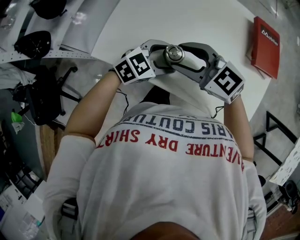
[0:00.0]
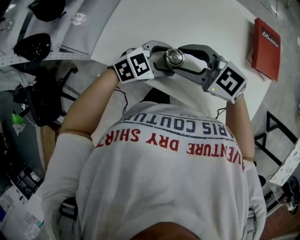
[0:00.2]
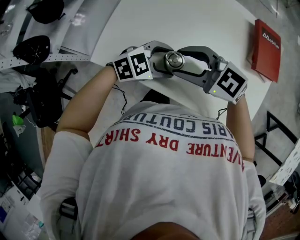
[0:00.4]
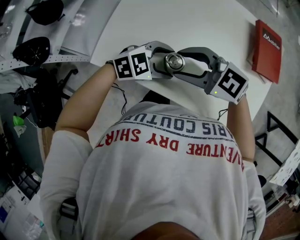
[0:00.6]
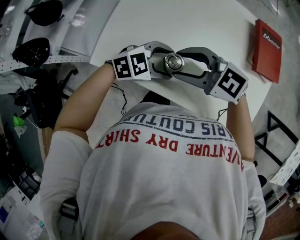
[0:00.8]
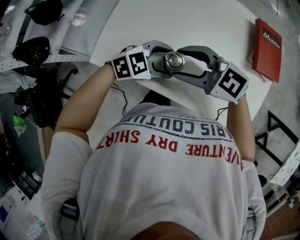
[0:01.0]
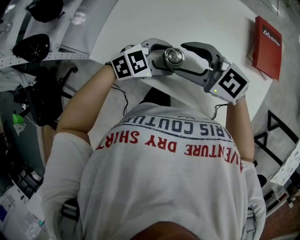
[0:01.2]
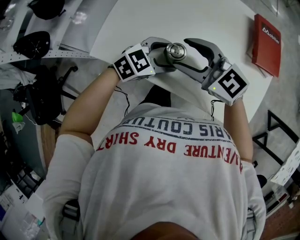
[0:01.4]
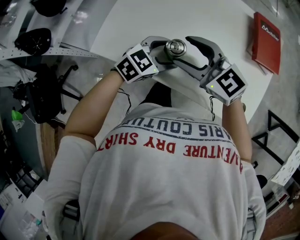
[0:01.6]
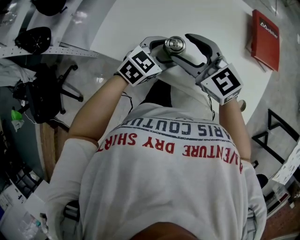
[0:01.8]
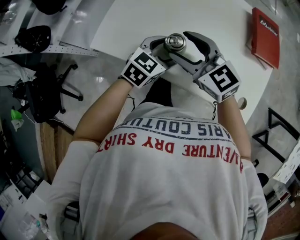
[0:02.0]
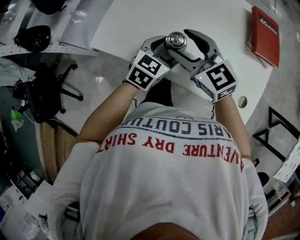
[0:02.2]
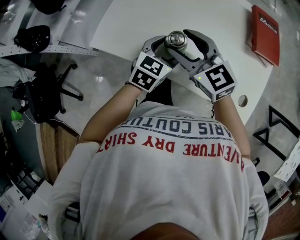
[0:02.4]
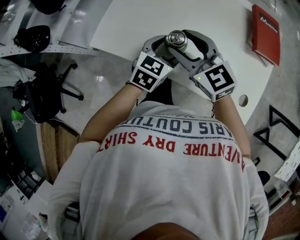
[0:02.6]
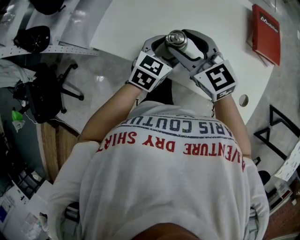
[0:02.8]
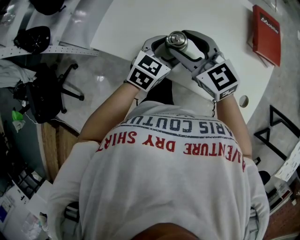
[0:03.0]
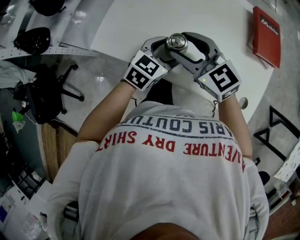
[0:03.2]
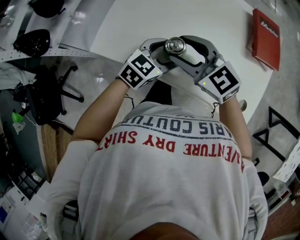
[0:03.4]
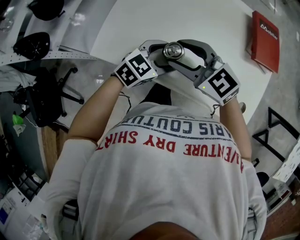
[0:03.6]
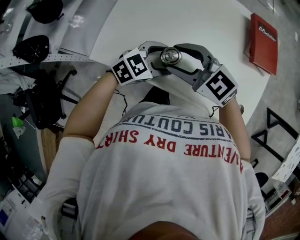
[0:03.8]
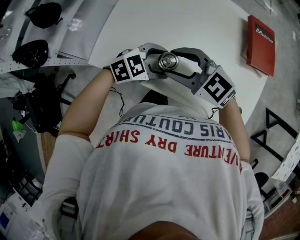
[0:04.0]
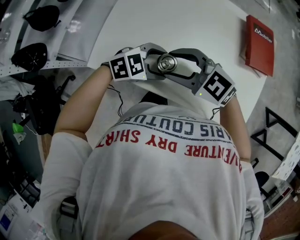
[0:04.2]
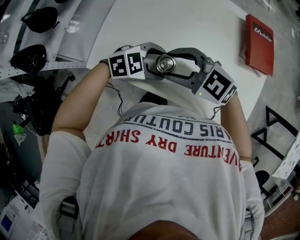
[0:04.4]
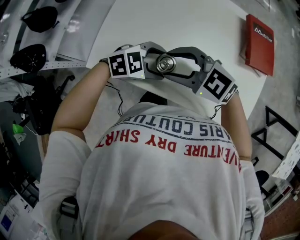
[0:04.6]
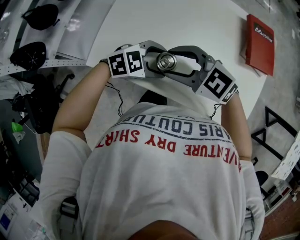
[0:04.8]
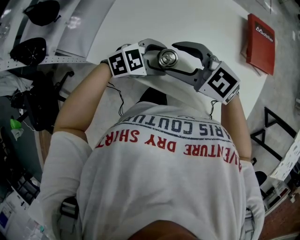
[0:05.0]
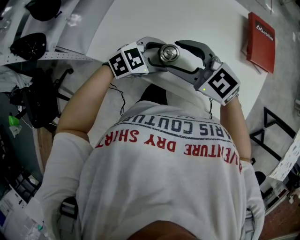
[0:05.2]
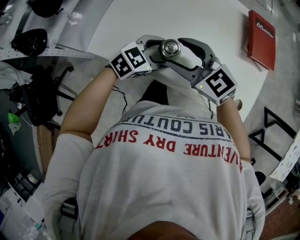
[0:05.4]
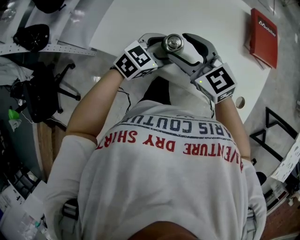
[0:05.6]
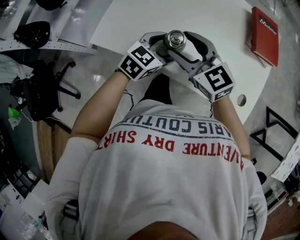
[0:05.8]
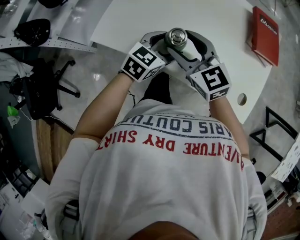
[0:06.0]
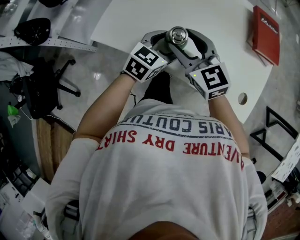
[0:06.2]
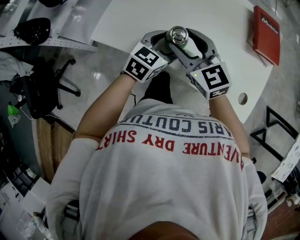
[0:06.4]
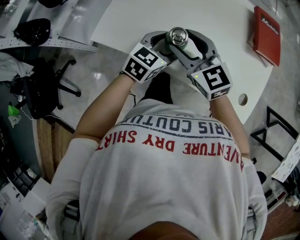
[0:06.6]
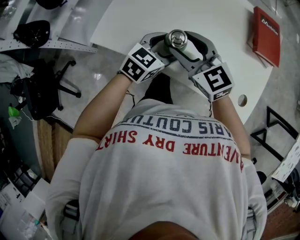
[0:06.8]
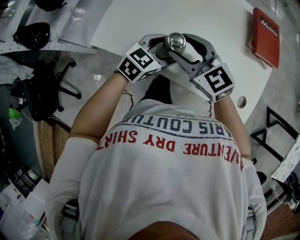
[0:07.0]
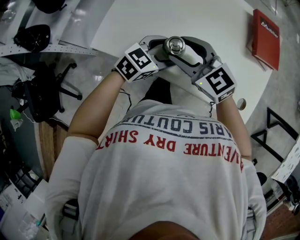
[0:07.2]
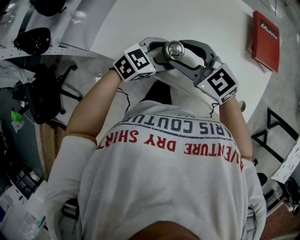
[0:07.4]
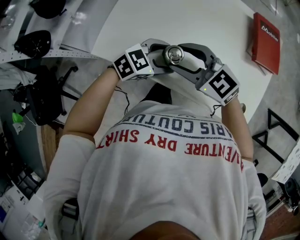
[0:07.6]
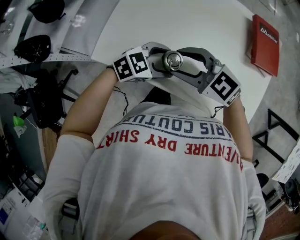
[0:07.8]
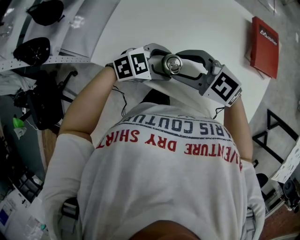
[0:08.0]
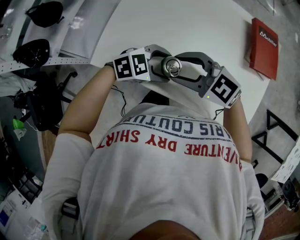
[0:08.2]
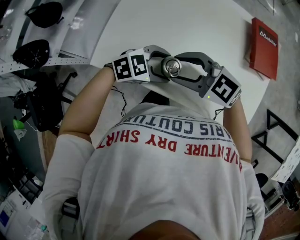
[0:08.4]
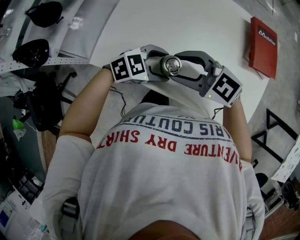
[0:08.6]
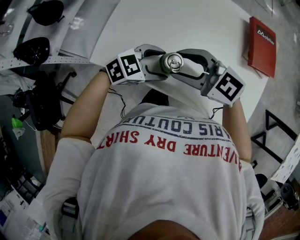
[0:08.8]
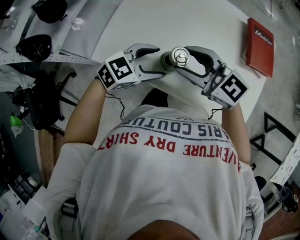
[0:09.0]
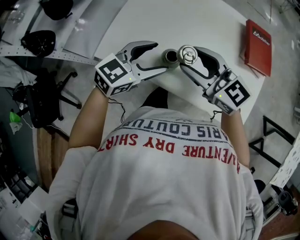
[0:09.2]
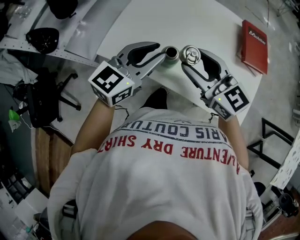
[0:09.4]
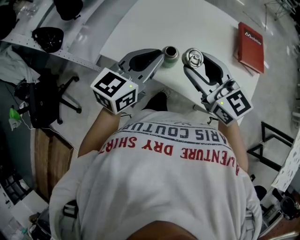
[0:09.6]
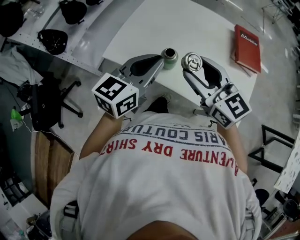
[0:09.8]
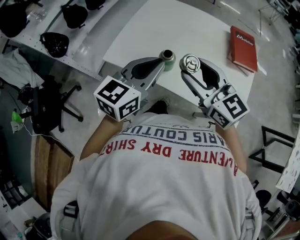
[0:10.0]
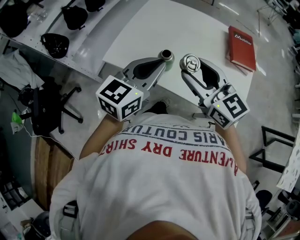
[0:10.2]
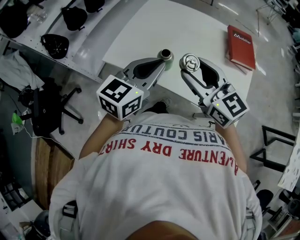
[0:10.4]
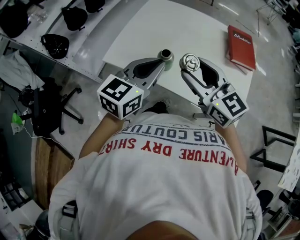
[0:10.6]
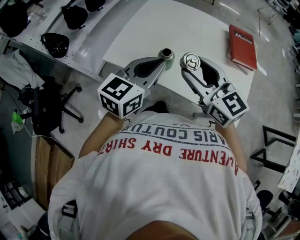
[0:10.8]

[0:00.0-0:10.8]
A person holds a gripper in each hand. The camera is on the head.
0.0 to 1.6 s: The grippers stay close to where they were, moving slightly.
1.6 to 3.0 s: The left gripper rotates some 20 degrees.
3.0 to 4.6 s: The right gripper changes its angle by approximately 30 degrees, while the left gripper swivels some 50 degrees.
4.6 to 6.2 s: The right gripper changes its angle by about 40 degrees. Meanwhile the left gripper rotates roughly 50 degrees.
6.2 to 7.8 s: The right gripper rotates approximately 30 degrees. The left gripper swivels roughly 40 degrees.
7.8 to 9.2 s: The left gripper goes about 10 cm upward, and changes its angle by some 30 degrees; the right gripper goes approximately 5 cm upward, and swivels about 20 degrees.
9.2 to 10.8 s: The right gripper moves backward and upward, some 10 cm. The left gripper travels upward and backward by roughly 15 cm, turns by roughly 20 degrees, and closes up.

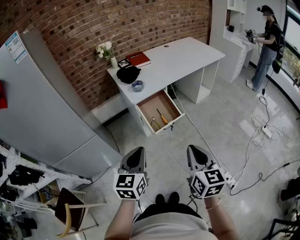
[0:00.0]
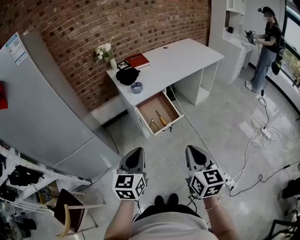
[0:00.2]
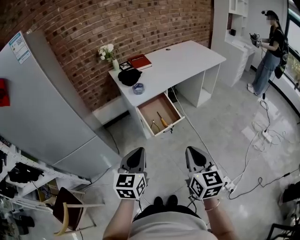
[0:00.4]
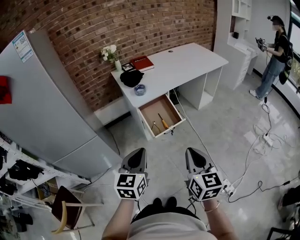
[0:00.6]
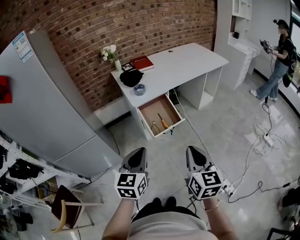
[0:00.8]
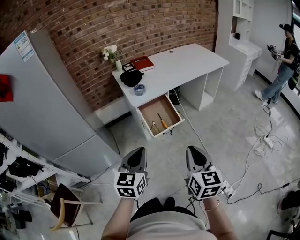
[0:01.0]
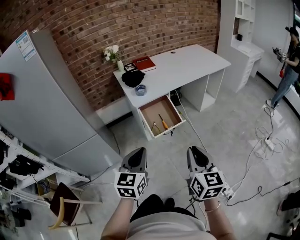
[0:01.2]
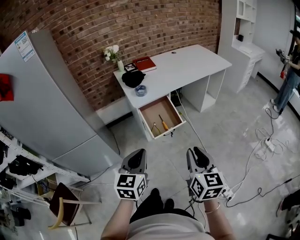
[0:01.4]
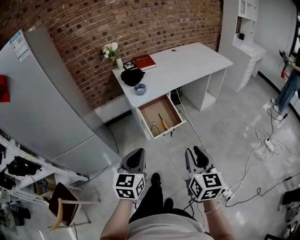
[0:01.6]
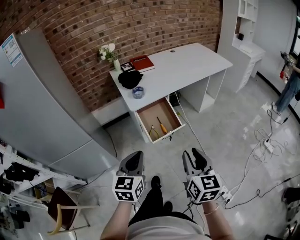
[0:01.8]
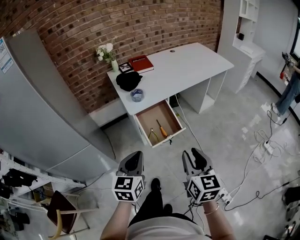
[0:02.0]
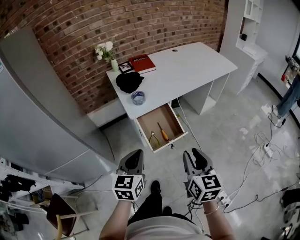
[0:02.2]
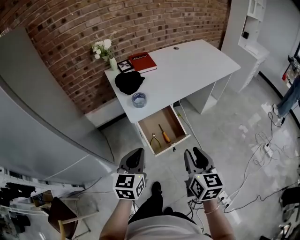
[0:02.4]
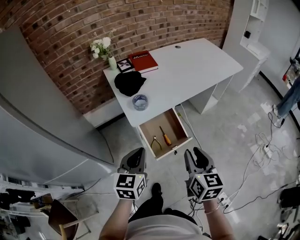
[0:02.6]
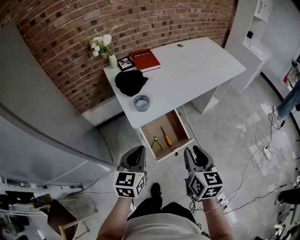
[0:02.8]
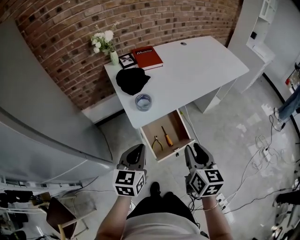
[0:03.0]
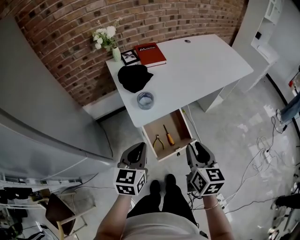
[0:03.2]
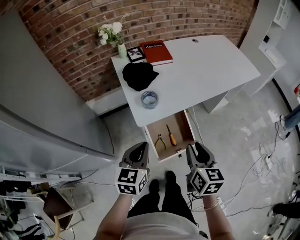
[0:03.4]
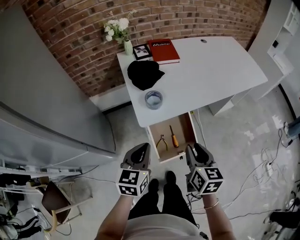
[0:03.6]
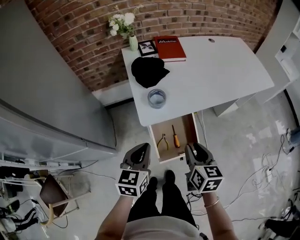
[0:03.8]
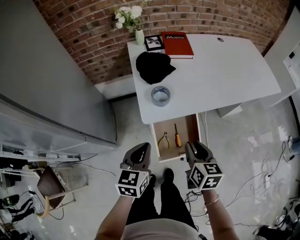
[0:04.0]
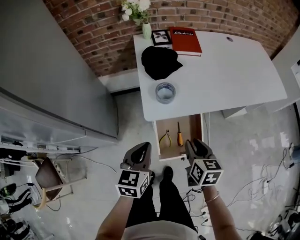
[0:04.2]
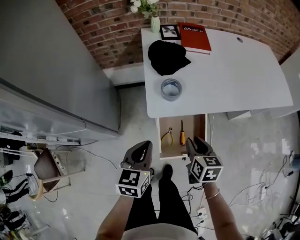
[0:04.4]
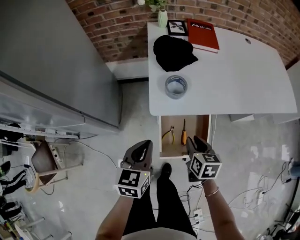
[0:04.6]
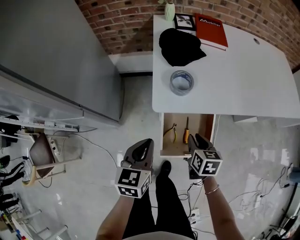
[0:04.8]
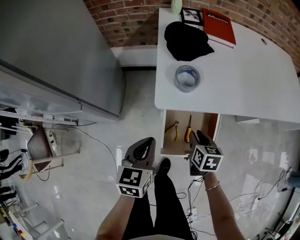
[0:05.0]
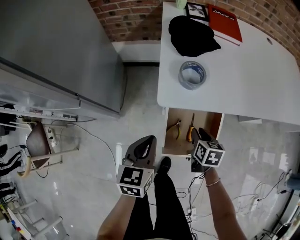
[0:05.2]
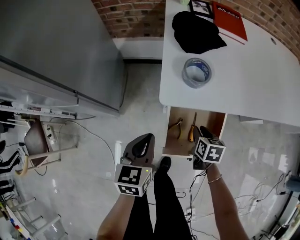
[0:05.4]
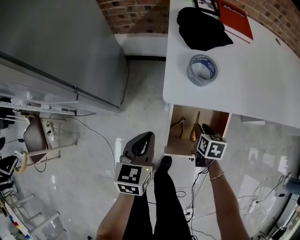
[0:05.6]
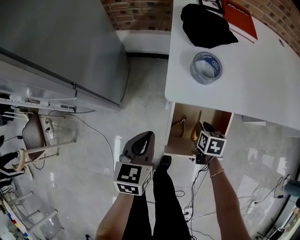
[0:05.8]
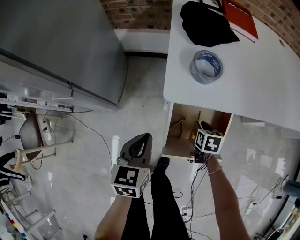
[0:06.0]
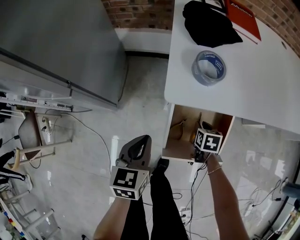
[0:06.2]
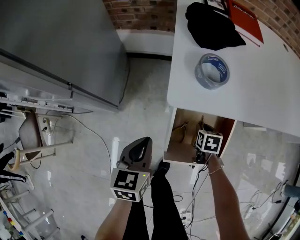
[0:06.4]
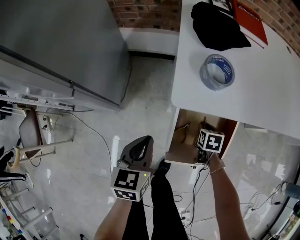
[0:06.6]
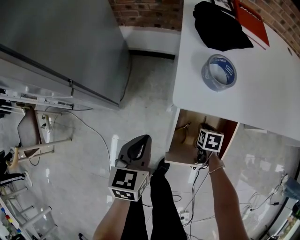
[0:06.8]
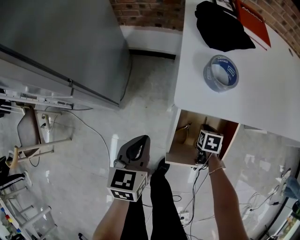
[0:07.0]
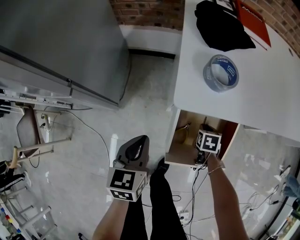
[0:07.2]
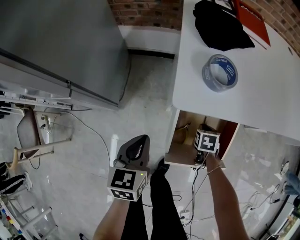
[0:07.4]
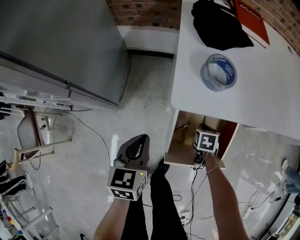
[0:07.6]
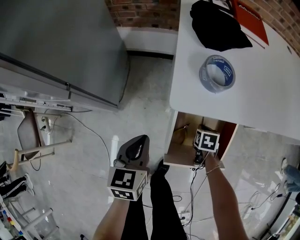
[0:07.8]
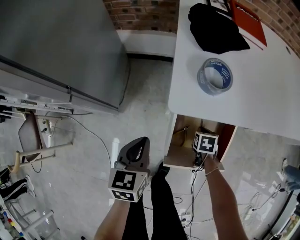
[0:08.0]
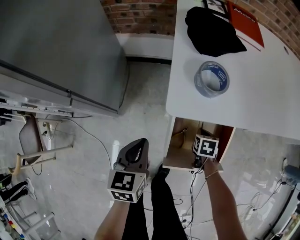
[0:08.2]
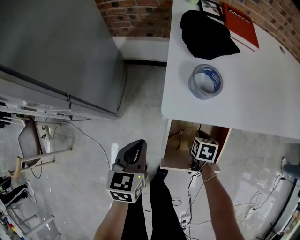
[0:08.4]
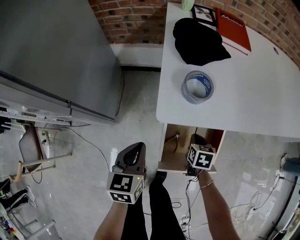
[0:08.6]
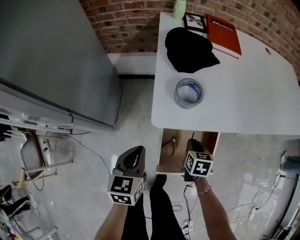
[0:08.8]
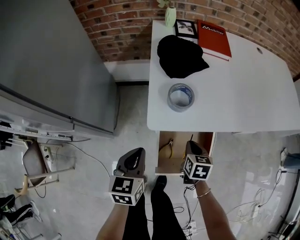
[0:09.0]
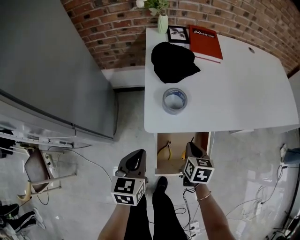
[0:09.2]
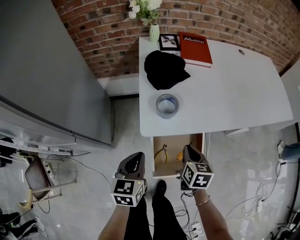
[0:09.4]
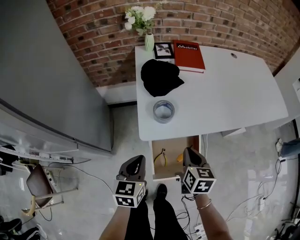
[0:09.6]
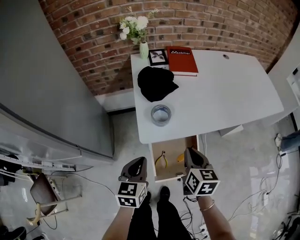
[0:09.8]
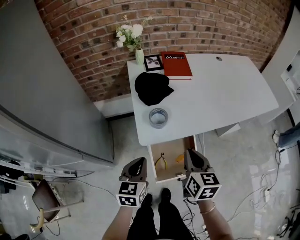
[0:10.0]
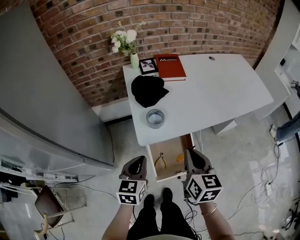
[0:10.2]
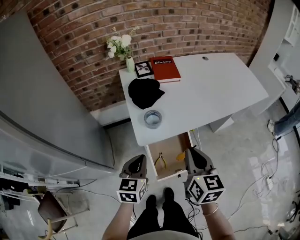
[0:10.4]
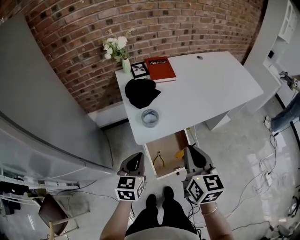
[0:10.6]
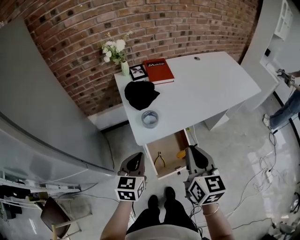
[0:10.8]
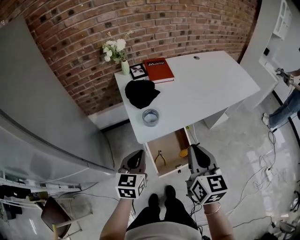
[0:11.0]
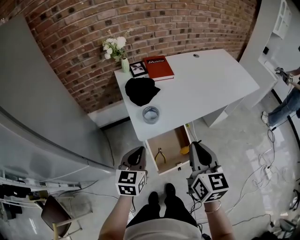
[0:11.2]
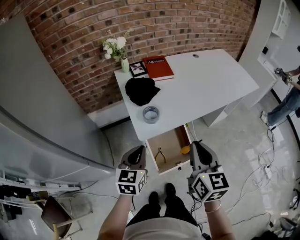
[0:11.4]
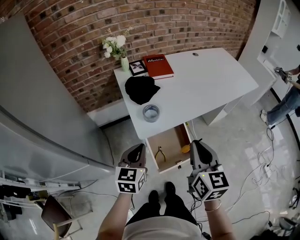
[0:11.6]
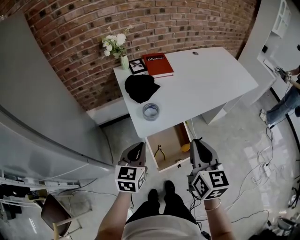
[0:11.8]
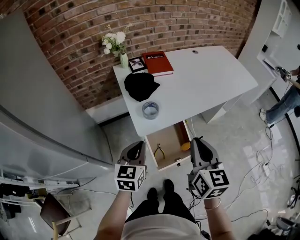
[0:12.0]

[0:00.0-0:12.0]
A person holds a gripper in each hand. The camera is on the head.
0.0 to 1.6 s: The right gripper opens.
1.6 to 3.0 s: The two grippers go approximately 25 cm forward.
3.0 to 4.4 s: The right gripper is displaced downward and forward by roughly 20 cm, and swivels roughly 30 degrees, while the left gripper heads downward, covering some 10 cm, and changes its angle by roughly 20 degrees.
4.4 to 6.0 s: The right gripper heads downward, covering some 25 cm, and turns by approximately 20 degrees. The left gripper travels downward by roughly 15 cm.
6.0 to 7.6 s: The right gripper travels downward by roughly 5 cm.
7.6 to 9.0 s: The left gripper goes roughly 5 cm upward, while the right gripper goes some 15 cm upward, and turns by approximately 20 degrees.
9.0 to 10.4 s: The right gripper is displaced upward by approximately 30 cm, and swivels about 30 degrees, while the left gripper is displaced upward by roughly 15 cm, and swivels roughly 20 degrees.
10.4 to 12.0 s: The right gripper heads upward, covering some 5 cm.

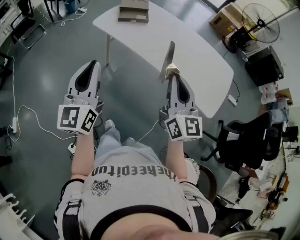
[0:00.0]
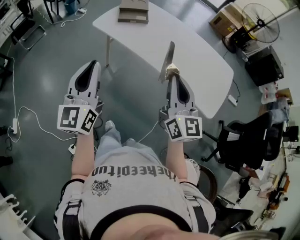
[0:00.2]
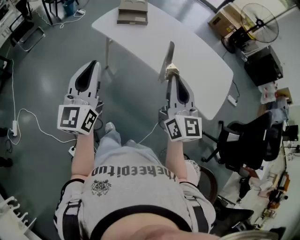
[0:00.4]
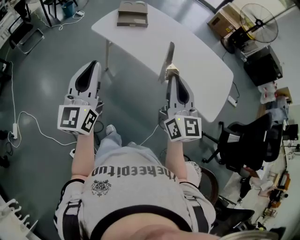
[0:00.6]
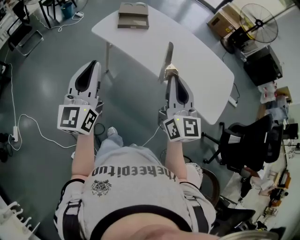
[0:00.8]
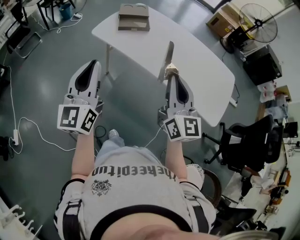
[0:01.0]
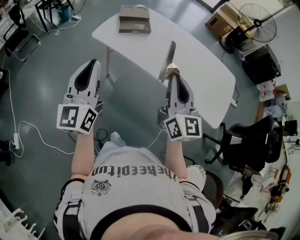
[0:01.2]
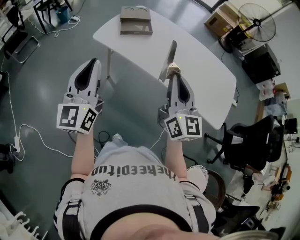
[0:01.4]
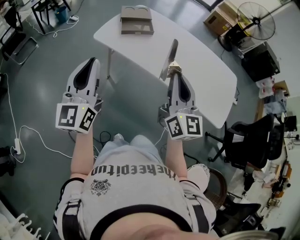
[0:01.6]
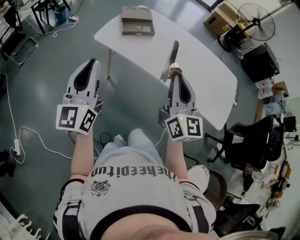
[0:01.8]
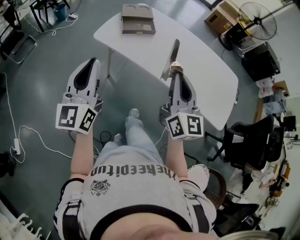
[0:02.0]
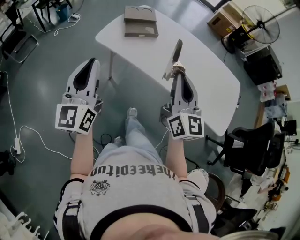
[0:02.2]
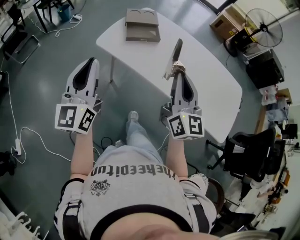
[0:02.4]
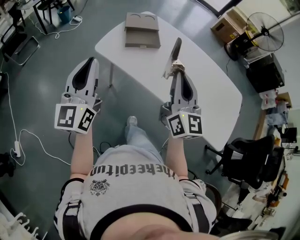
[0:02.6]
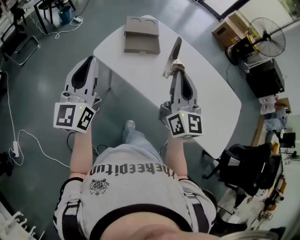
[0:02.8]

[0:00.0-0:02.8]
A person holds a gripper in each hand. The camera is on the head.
0.0 to 1.4 s: Both grippers move forward and to the left, some 15 cm.
1.4 to 2.8 s: Both grippers travel together forward, some 20 cm.
